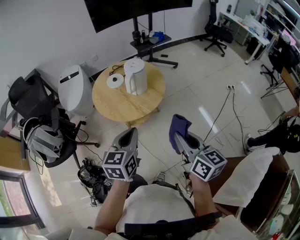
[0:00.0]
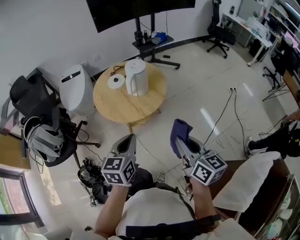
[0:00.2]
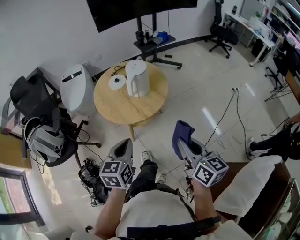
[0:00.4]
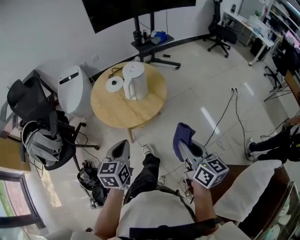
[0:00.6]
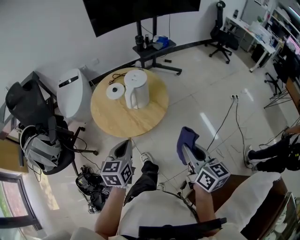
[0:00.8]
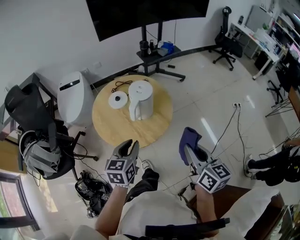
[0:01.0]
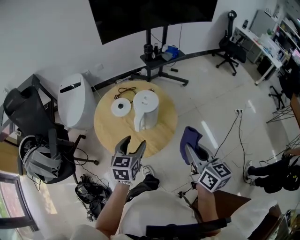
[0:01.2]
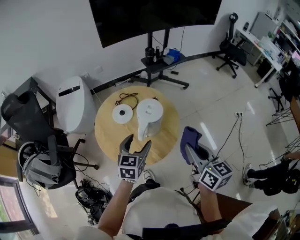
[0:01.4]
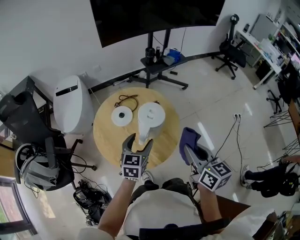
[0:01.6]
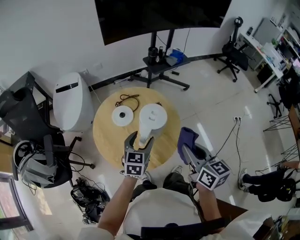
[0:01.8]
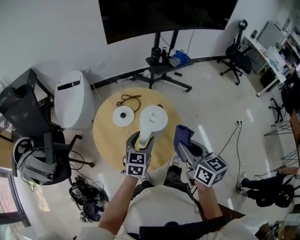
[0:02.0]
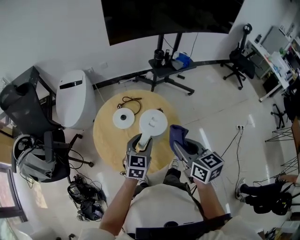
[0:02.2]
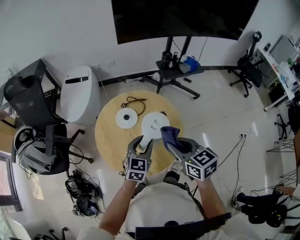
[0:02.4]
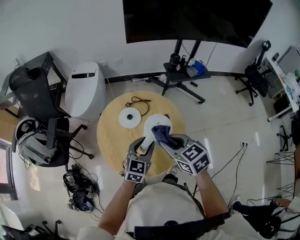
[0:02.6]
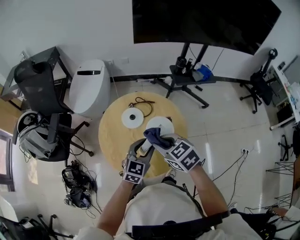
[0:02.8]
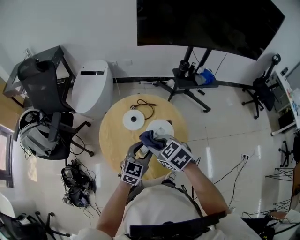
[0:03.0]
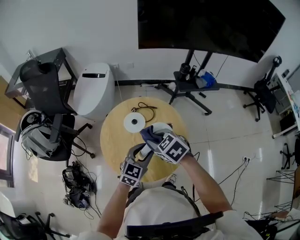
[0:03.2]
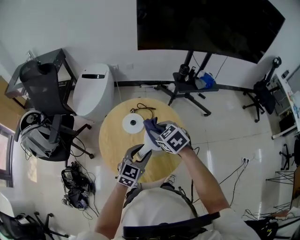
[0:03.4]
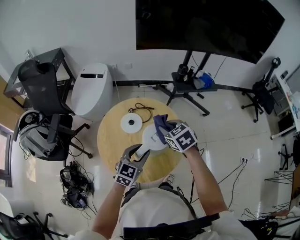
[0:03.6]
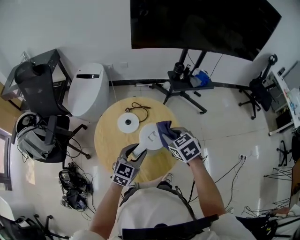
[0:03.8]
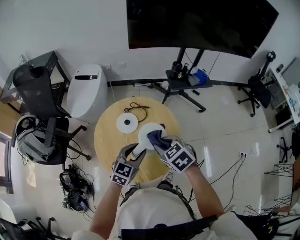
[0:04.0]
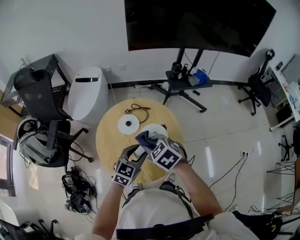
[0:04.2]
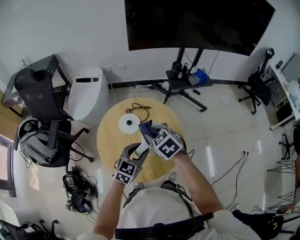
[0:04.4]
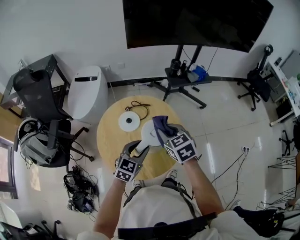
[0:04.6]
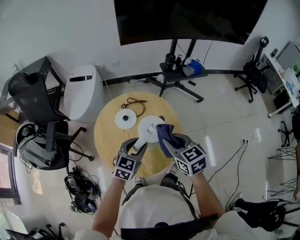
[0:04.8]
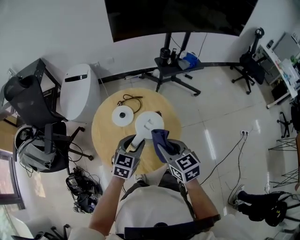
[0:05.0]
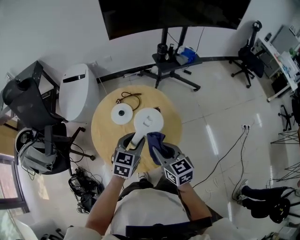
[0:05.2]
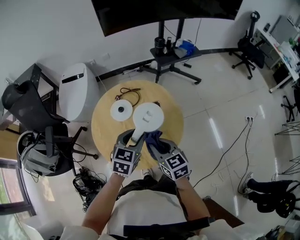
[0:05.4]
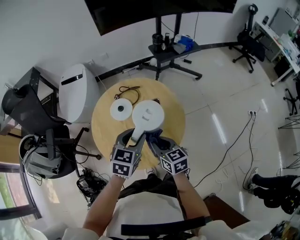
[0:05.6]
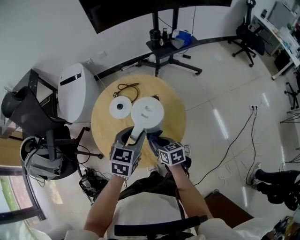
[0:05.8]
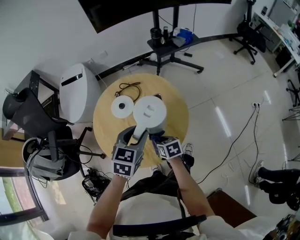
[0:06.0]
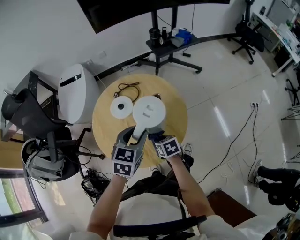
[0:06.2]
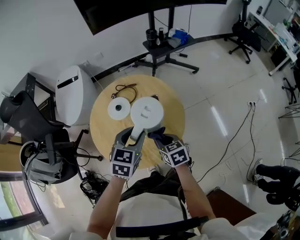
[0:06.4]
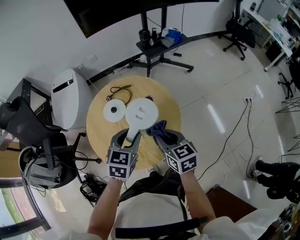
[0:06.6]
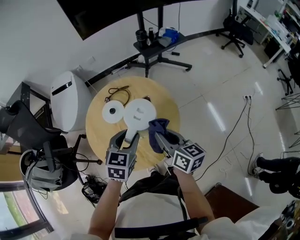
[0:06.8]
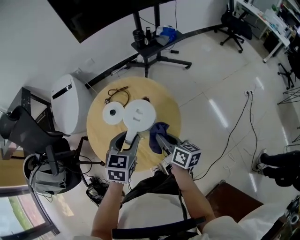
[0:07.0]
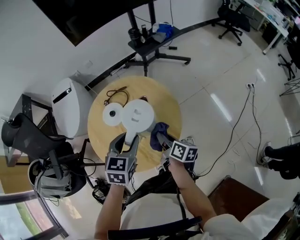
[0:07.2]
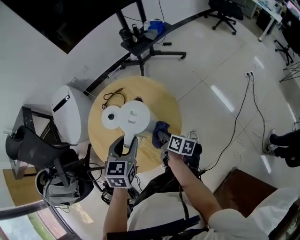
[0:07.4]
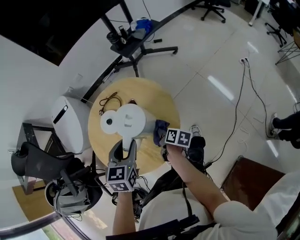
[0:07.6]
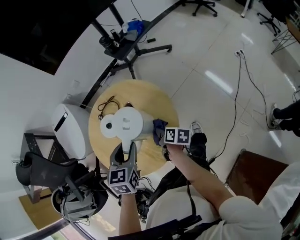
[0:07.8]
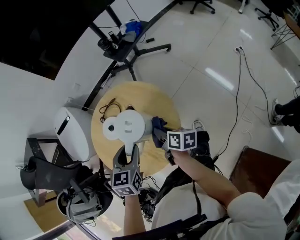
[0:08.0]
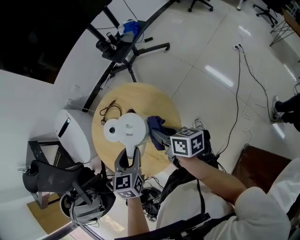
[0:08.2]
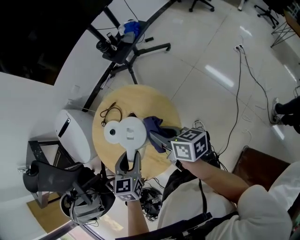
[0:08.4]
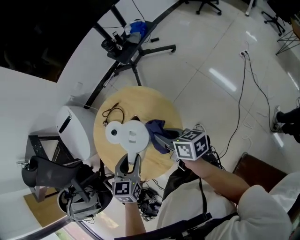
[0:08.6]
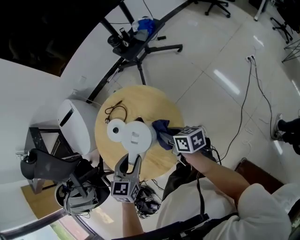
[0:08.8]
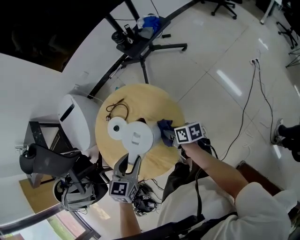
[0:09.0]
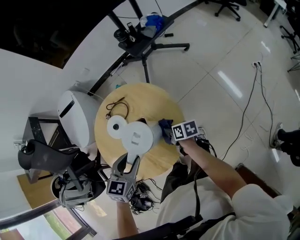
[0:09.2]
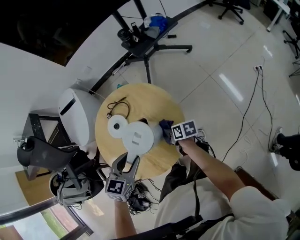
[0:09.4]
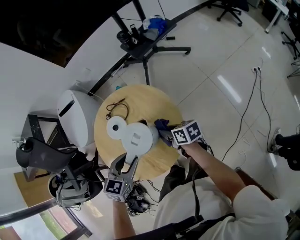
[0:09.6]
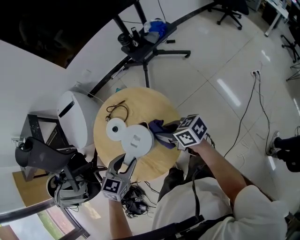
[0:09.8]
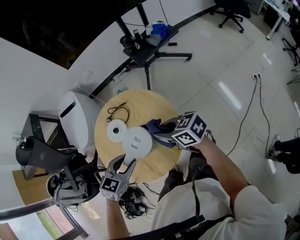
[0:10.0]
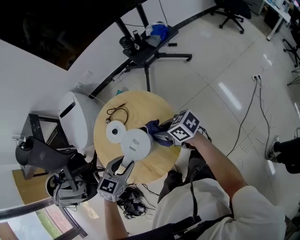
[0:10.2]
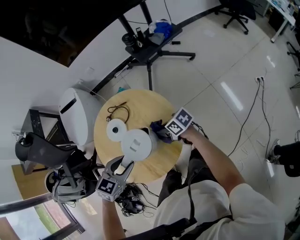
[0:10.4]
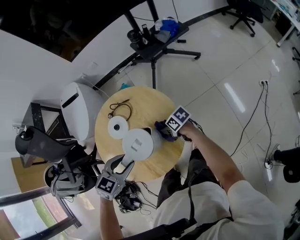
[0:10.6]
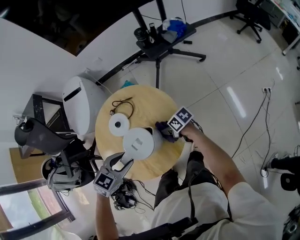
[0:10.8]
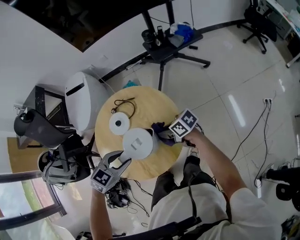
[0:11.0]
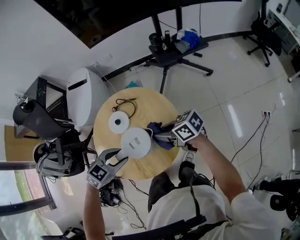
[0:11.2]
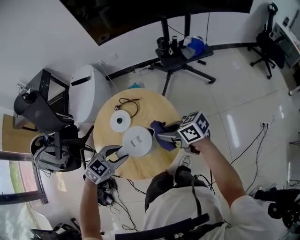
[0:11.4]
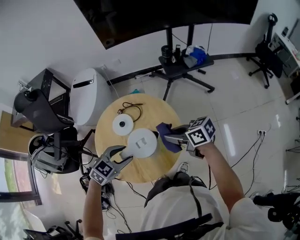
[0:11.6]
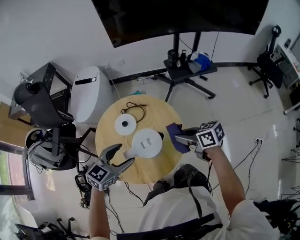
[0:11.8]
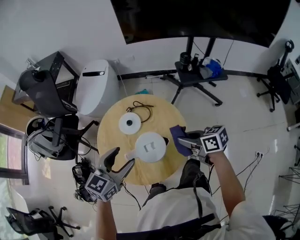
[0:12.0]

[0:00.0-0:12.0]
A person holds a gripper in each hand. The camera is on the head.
0:00.0 to 0:01.6: The two grippers go about 30 cm forward. The left gripper opens.
0:01.6 to 0:03.0: The left gripper closes, while the right gripper ends up some 20 cm from where it was, and turns by some 70 degrees.
0:03.0 to 0:04.4: The right gripper travels forward by some 5 cm, and reaches roughly 10 cm to the right, then returns.
0:04.4 to 0:06.0: The right gripper goes about 25 cm downward and backward, and twists about 50 degrees clockwise, seen from behind.
0:06.0 to 0:07.6: The right gripper shifts roughly 5 cm to the right, reaches approximately 20 cm upward, then returns, and rotates around the line of its fingers by approximately 60 degrees, clockwise from behind.
0:07.6 to 0:09.0: The right gripper reaches approximately 25 cm upward, then returns, and swivels some 30 degrees.
0:09.0 to 0:10.4: The right gripper moves up and down over about 20 cm, changing direction 2 times, and rotates approximately 40 degrees.
0:10.4 to 0:12.0: The left gripper heads upward, covering some 10 cm, turns by some 40 degrees, and opens; the right gripper heads upward, covering approximately 15 cm.

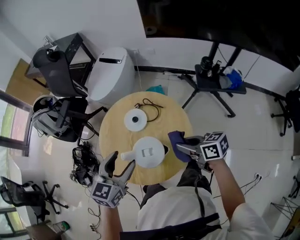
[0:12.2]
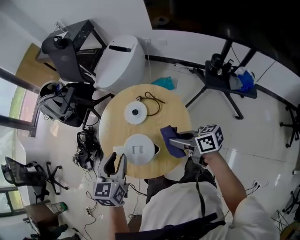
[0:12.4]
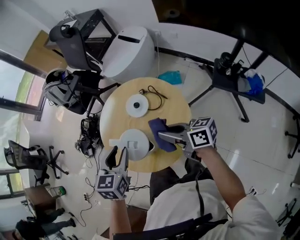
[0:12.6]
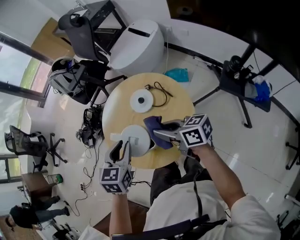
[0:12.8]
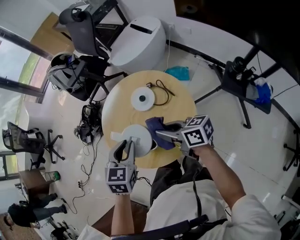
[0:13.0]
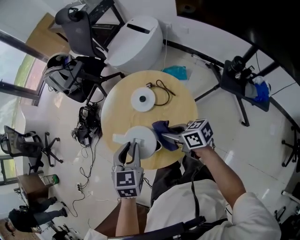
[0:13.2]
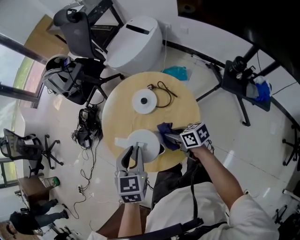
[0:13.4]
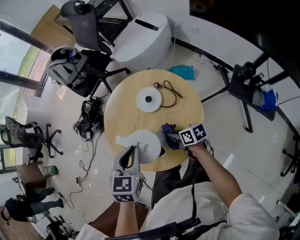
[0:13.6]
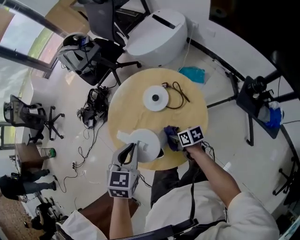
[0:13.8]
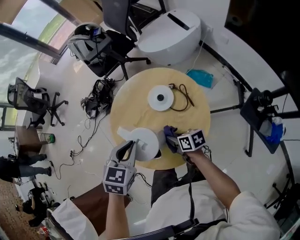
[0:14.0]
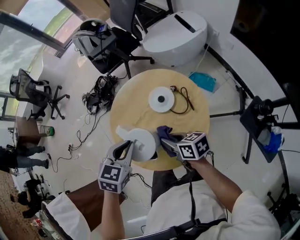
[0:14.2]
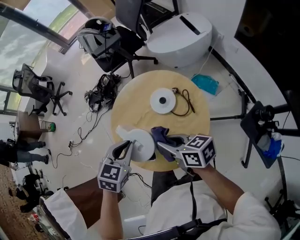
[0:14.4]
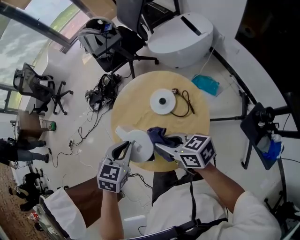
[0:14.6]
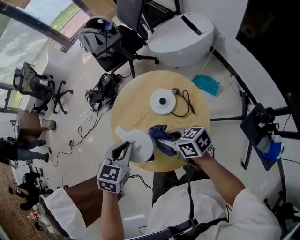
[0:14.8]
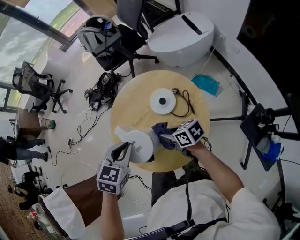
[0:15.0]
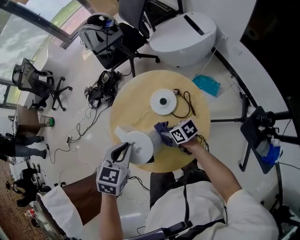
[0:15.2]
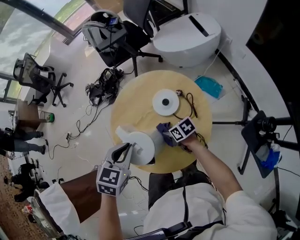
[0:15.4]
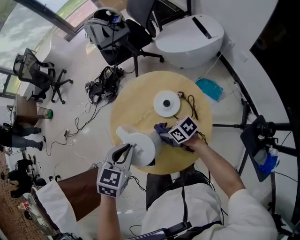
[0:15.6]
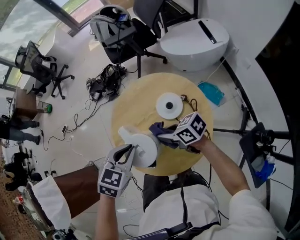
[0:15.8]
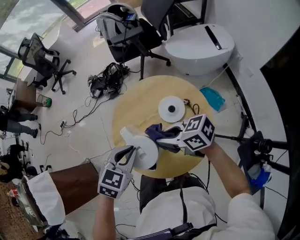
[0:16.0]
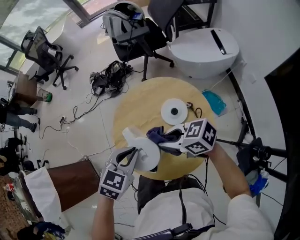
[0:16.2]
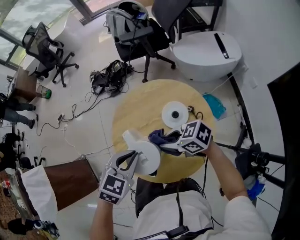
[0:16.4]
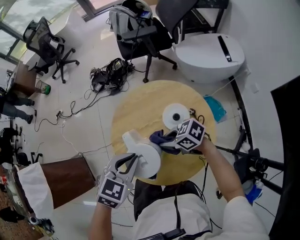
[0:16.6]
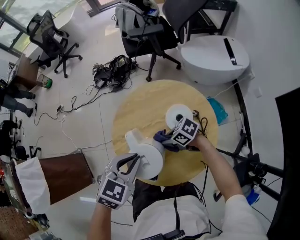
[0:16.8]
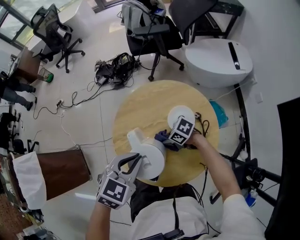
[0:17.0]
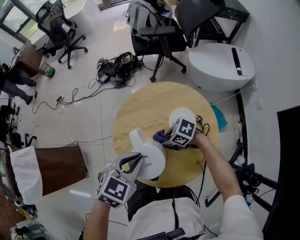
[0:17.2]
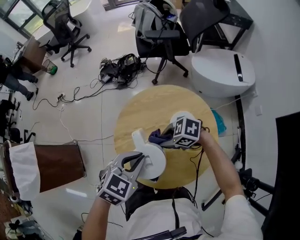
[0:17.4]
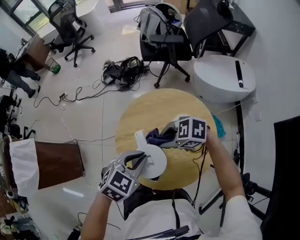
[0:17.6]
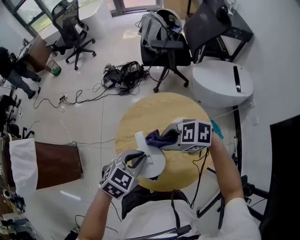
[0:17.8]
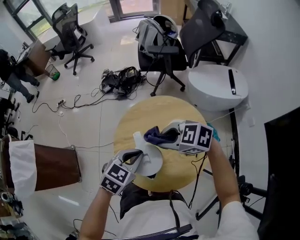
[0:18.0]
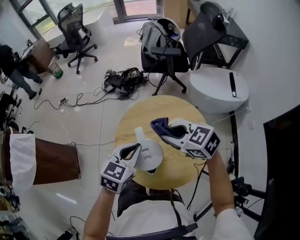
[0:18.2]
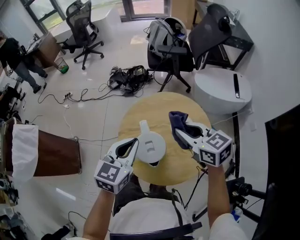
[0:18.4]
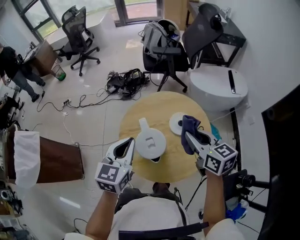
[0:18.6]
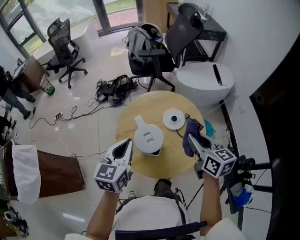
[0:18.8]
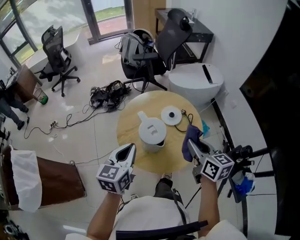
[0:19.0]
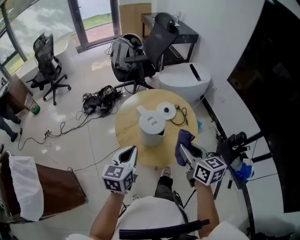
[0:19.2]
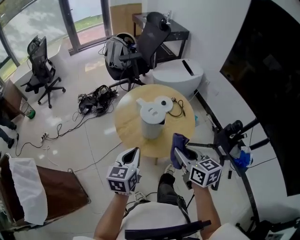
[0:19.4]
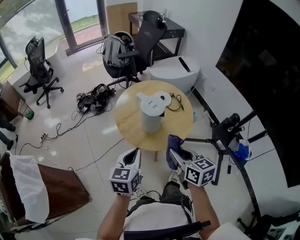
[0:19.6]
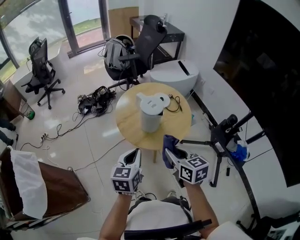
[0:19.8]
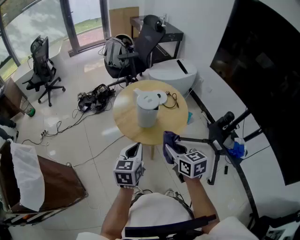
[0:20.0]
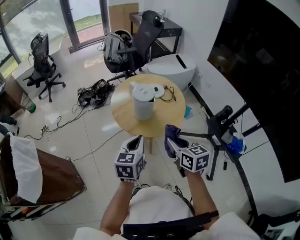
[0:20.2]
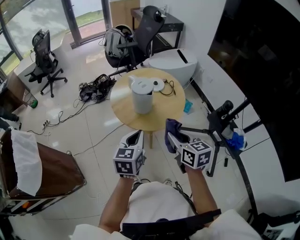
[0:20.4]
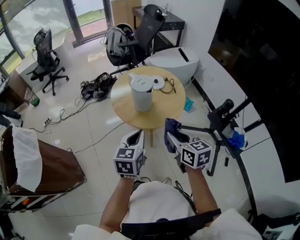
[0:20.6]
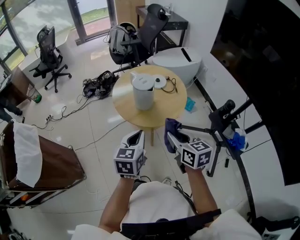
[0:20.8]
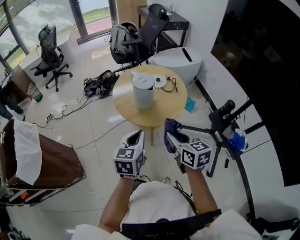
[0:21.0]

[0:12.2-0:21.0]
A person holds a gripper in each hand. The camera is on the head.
0:12.2 to 0:13.6: The right gripper moves downward, approximately 20 cm, and swivels roughly 30 degrees. Meanwhile the left gripper shifts by some 5 cm, swivels some 40 degrees, and closes up.
0:13.6 to 0:15.2: The right gripper shifts approximately 5 cm forward, moves some 20 cm upward and comes back, and rotates roughly 30 degrees.
0:15.2 to 0:16.6: The right gripper swings up and down, about 20 cm each way, with 2 reversals, and rotates approximately 40 degrees.
0:16.6 to 0:18.0: The right gripper shifts some 15 cm upward, and rotates some 30 degrees.
0:18.0 to 0:19.6: The right gripper shifts by about 30 cm, and changes its angle by approximately 90 degrees, while the left gripper shifts by roughly 25 cm, and rotates about 20 degrees.
0:19.6 to 0:21.0: The grippers both shift backward and to the right by about 10 cm.

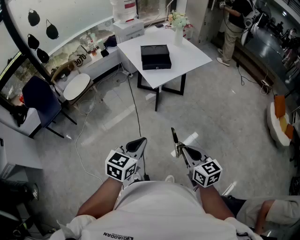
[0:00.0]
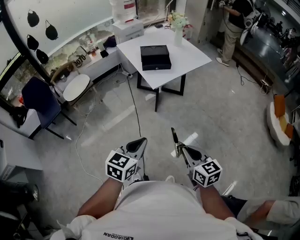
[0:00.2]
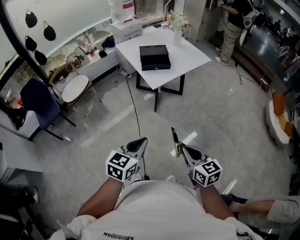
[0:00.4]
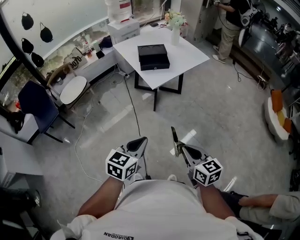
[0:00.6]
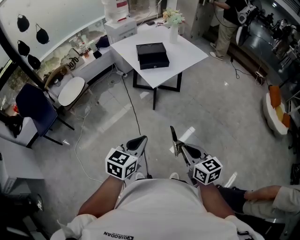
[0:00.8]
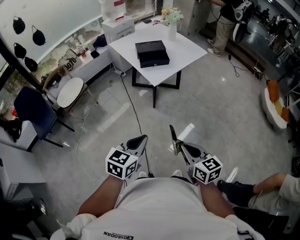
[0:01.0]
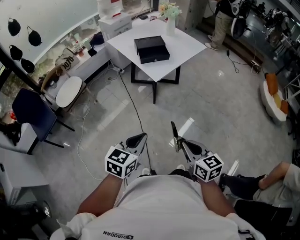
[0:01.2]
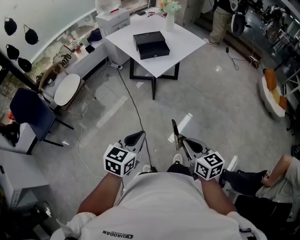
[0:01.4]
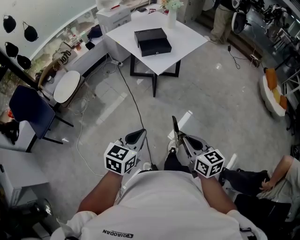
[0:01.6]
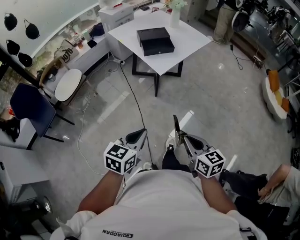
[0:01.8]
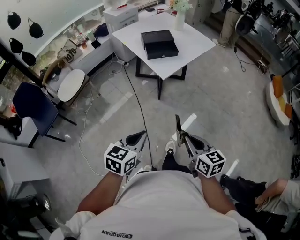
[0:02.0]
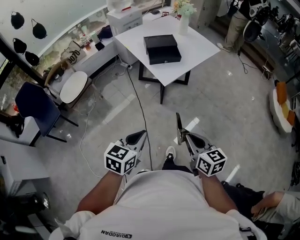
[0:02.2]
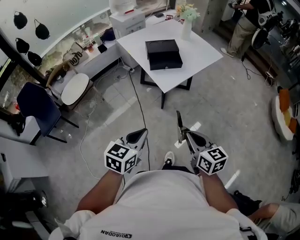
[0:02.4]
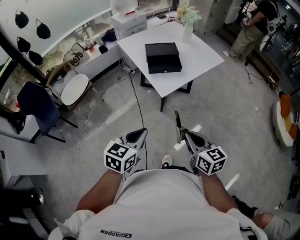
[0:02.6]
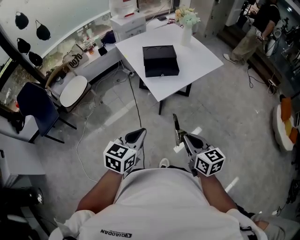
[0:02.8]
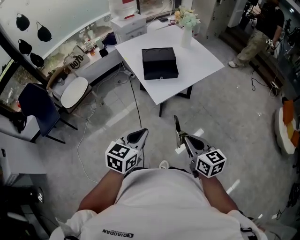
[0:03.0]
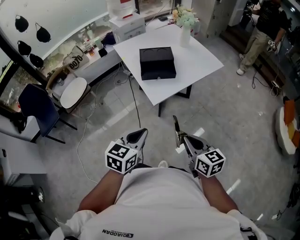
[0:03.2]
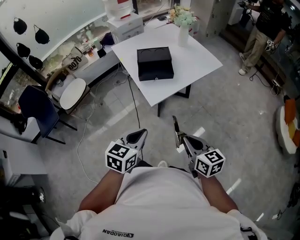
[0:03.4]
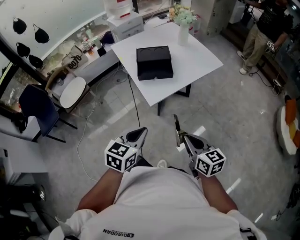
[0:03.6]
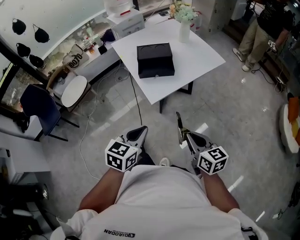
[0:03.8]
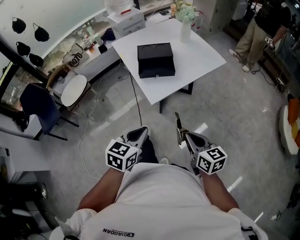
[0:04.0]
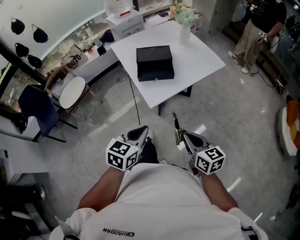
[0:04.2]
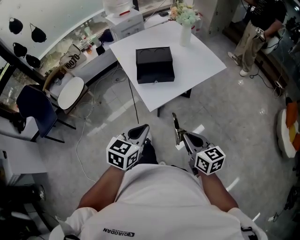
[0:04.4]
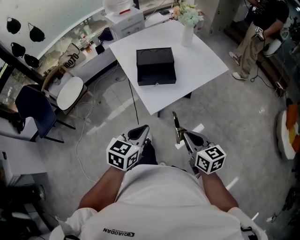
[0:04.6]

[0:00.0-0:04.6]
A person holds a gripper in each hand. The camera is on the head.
0:00.0 to 0:01.6: Both grippers travel together to the left, about 10 cm.
0:01.6 to 0:03.0: The right gripper travels forward by approximately 25 cm, while the left gripper goes about 20 cm forward and to the right.
0:03.0 to 0:04.6: Both grippers move forward, roughly 10 cm.
